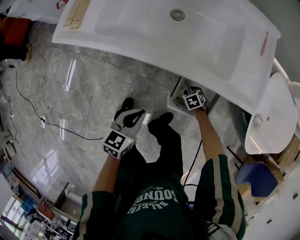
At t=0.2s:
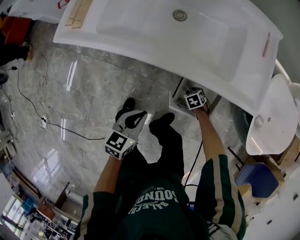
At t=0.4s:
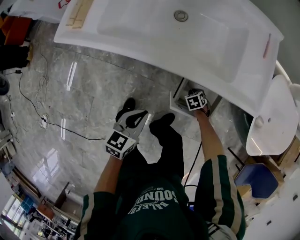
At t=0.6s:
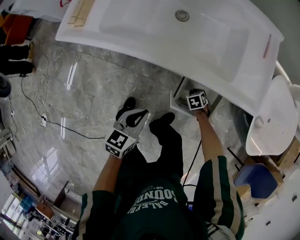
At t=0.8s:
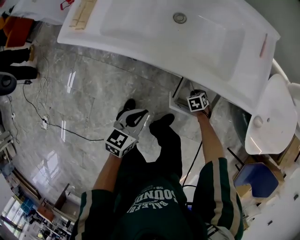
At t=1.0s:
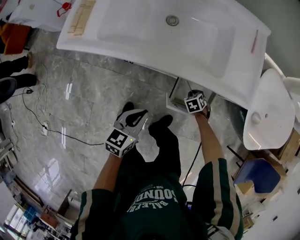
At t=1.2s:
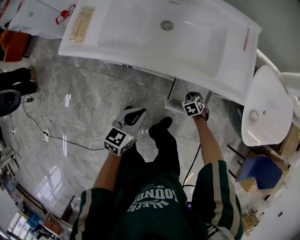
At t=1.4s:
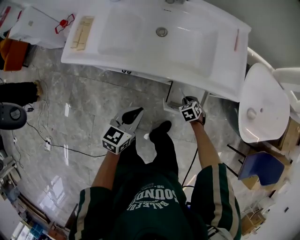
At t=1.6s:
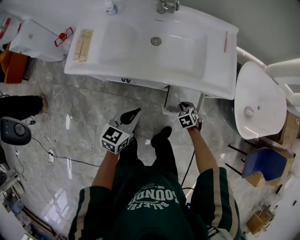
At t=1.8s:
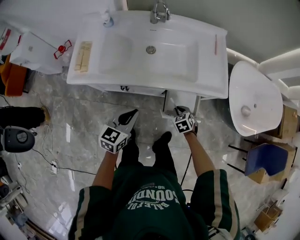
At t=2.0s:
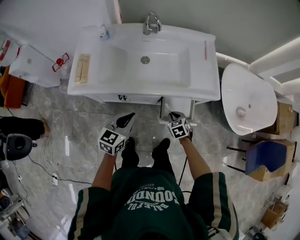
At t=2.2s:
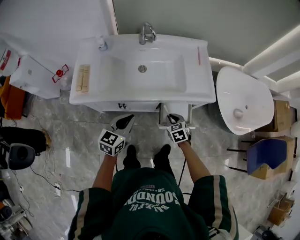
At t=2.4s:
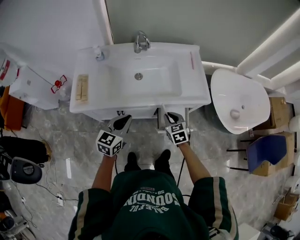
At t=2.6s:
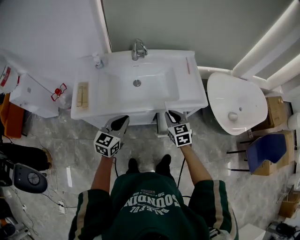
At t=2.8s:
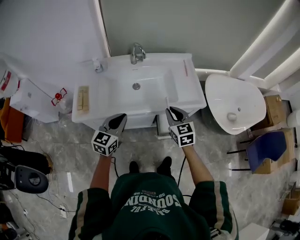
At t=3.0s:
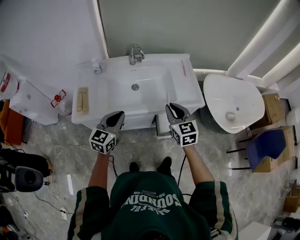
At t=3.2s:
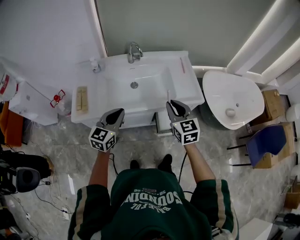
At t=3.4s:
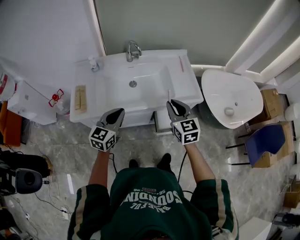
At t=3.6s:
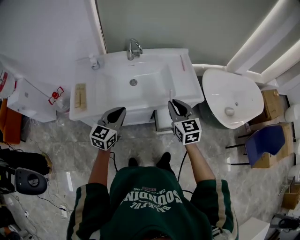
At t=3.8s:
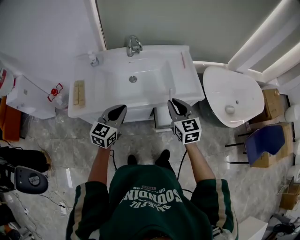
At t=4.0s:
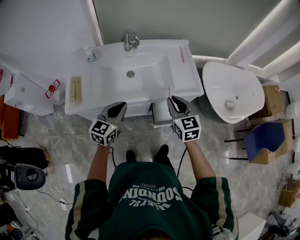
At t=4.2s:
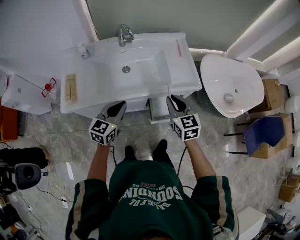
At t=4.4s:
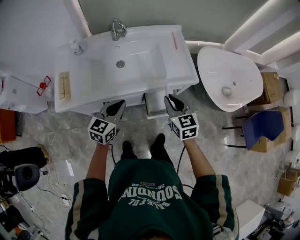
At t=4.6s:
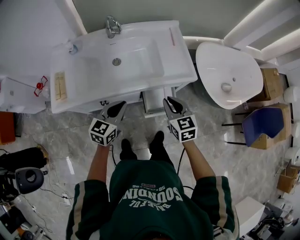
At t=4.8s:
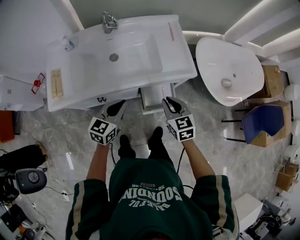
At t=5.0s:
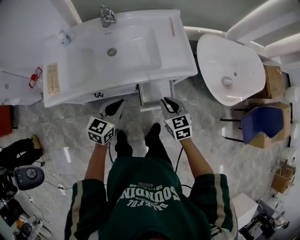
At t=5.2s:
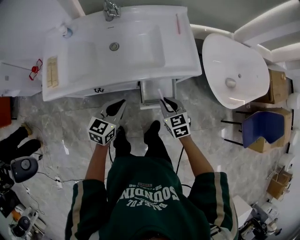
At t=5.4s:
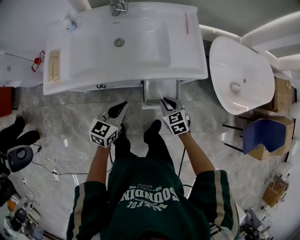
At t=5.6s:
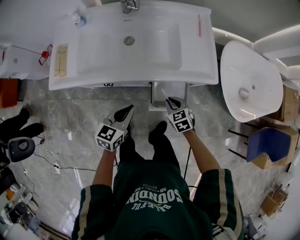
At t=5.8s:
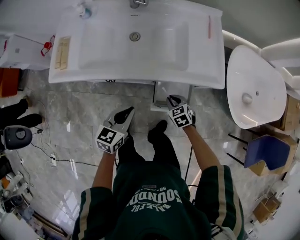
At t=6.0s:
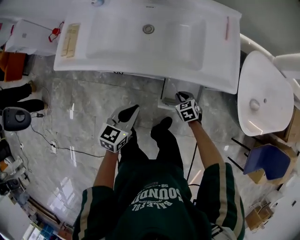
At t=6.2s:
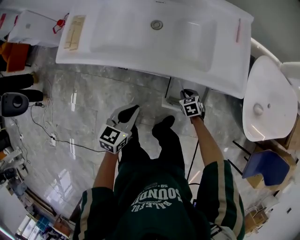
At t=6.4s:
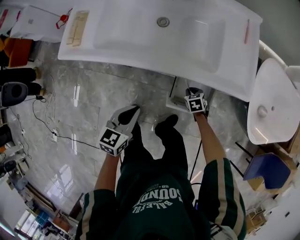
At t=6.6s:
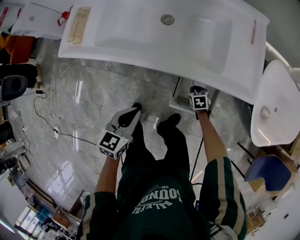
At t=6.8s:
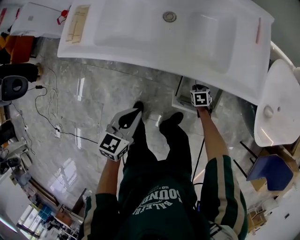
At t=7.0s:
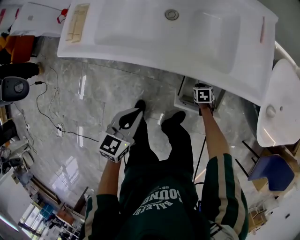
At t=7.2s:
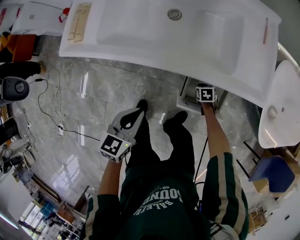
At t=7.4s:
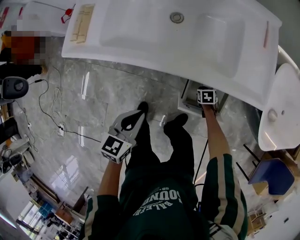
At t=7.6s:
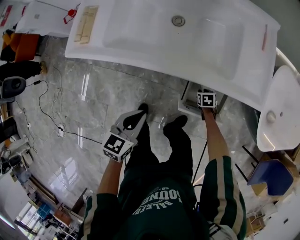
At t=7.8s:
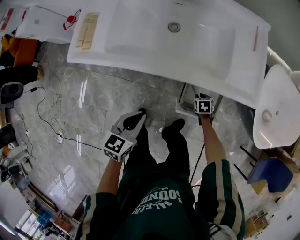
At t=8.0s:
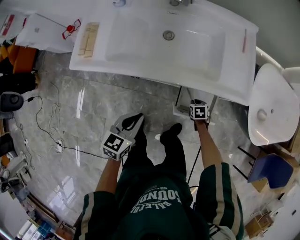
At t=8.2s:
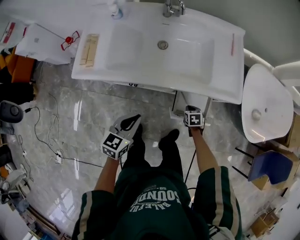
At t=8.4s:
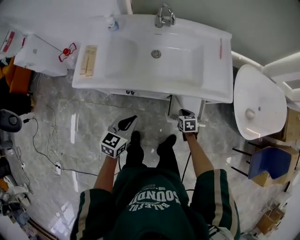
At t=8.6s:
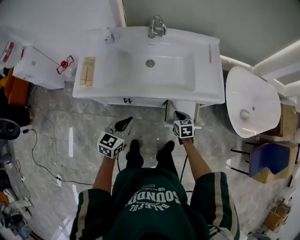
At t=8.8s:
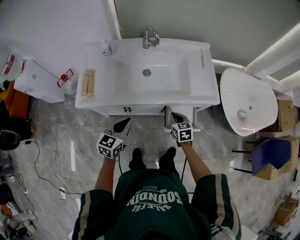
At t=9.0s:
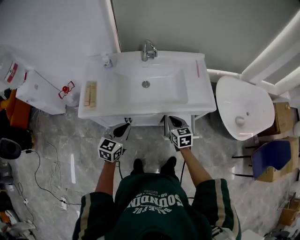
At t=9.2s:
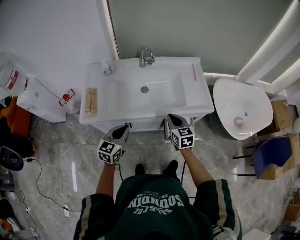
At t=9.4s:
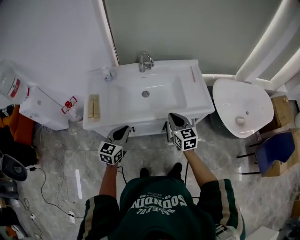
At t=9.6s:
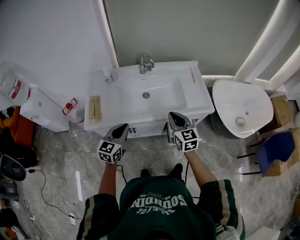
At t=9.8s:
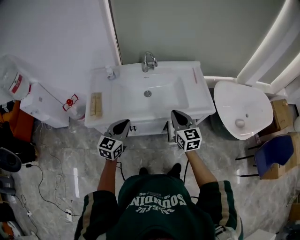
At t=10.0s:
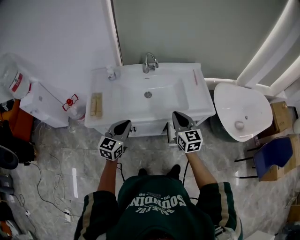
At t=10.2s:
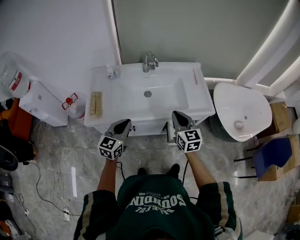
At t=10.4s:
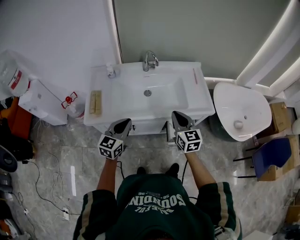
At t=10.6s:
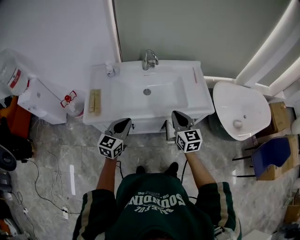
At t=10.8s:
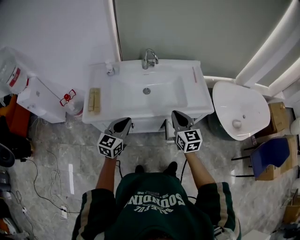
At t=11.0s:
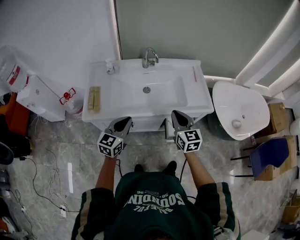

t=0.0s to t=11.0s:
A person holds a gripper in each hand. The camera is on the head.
t=0.0s to t=1.6s: The grippers both shift upward by approximately 15 cm.
t=1.6s to t=3.2s: The left gripper is displaced upward and to the left by approximately 20 cm, and turns by roughly 20 degrees, while the right gripper travels upward by approximately 40 cm, and angles its fingers upward, by about 50 degrees.
t=3.2s to t=4.8s: The right gripper travels downward and to the right by some 15 cm. The left gripper is displaced to the right and downward by about 15 cm.
t=4.8s to t=6.2s: The right gripper goes approximately 35 cm downward, and tips its fingers downward by roughly 30 degrees, while the left gripper travels downward and backward by approximately 15 cm, and rotates approximately 20 degrees.
t=6.2s to t=7.8s: The right gripper is displaced downward by some 5 cm.
t=7.8s to t=9.4s: The right gripper goes roughly 50 cm upward, and tips its fingers upward by some 50 degrees. The left gripper moves upward and to the left, roughly 20 cm, and turns by some 20 degrees.
t=9.4s to t=11.0s: The grippers make only small movements.

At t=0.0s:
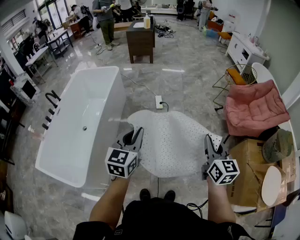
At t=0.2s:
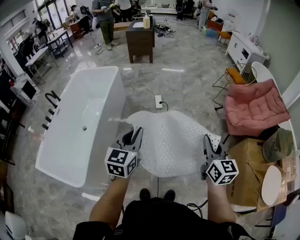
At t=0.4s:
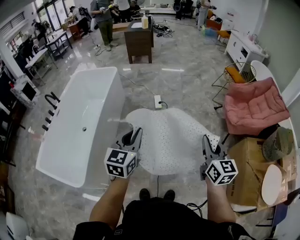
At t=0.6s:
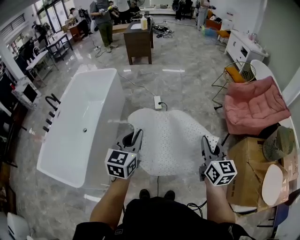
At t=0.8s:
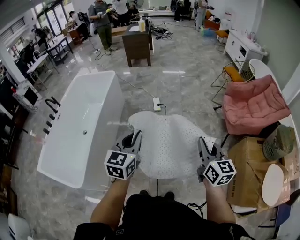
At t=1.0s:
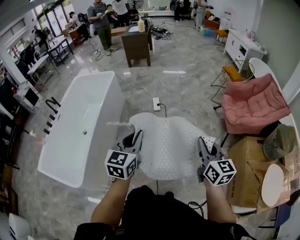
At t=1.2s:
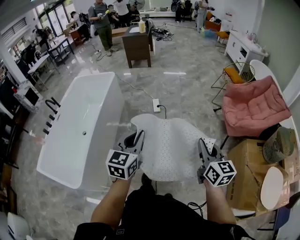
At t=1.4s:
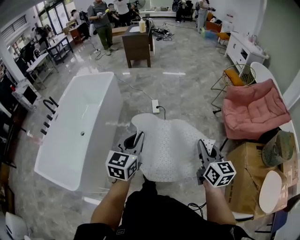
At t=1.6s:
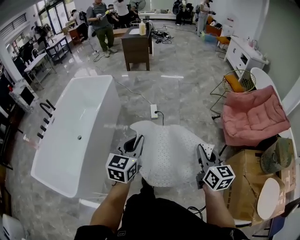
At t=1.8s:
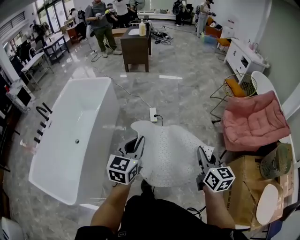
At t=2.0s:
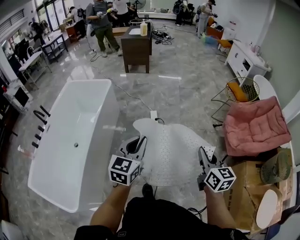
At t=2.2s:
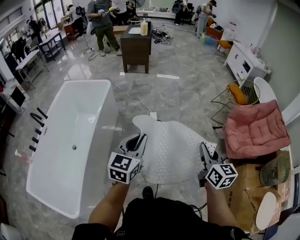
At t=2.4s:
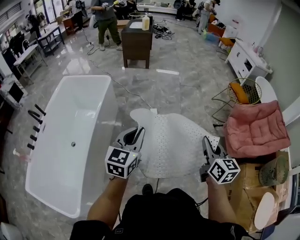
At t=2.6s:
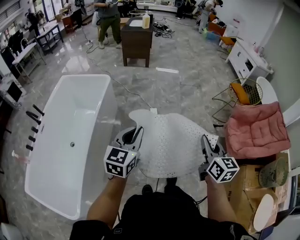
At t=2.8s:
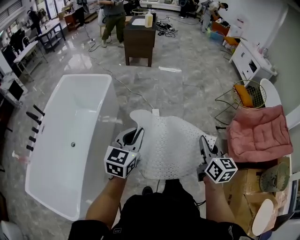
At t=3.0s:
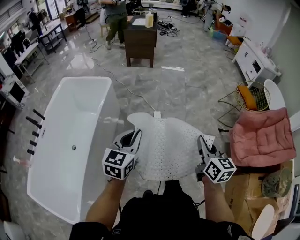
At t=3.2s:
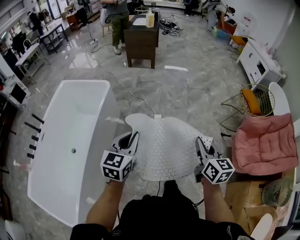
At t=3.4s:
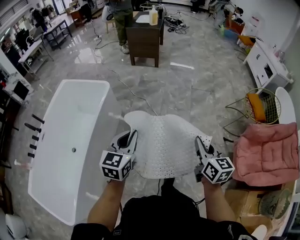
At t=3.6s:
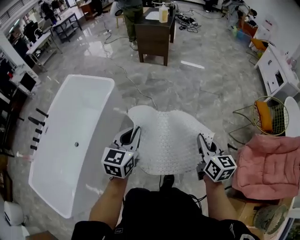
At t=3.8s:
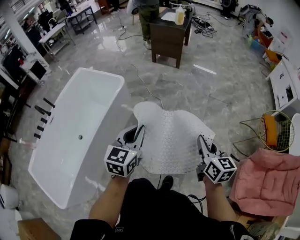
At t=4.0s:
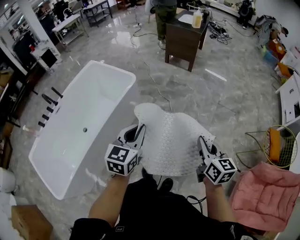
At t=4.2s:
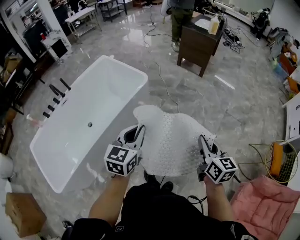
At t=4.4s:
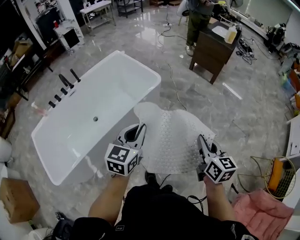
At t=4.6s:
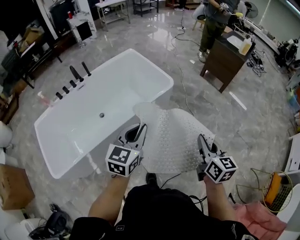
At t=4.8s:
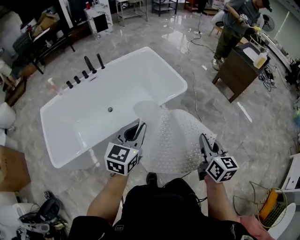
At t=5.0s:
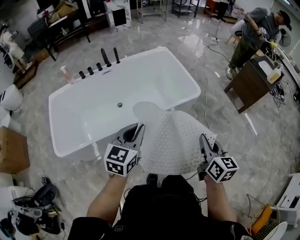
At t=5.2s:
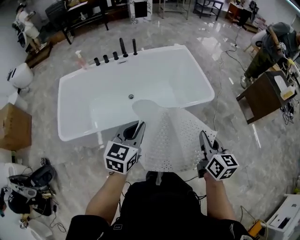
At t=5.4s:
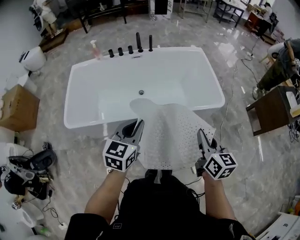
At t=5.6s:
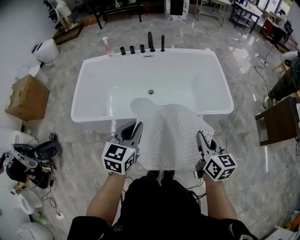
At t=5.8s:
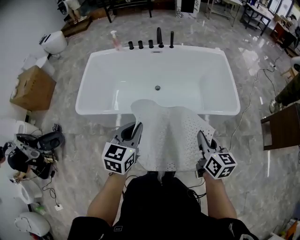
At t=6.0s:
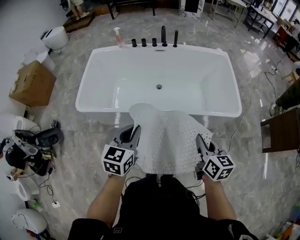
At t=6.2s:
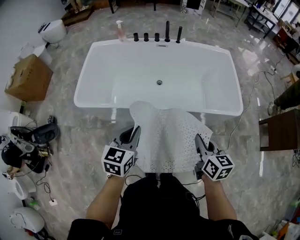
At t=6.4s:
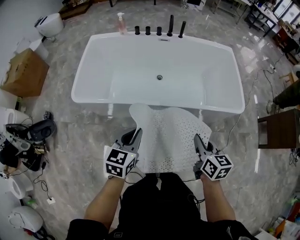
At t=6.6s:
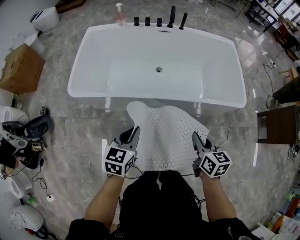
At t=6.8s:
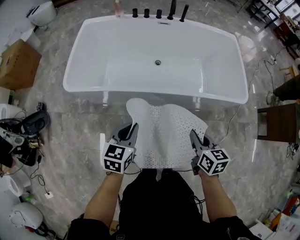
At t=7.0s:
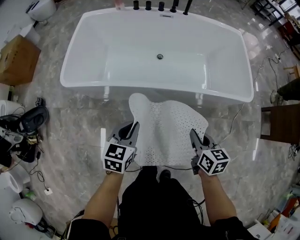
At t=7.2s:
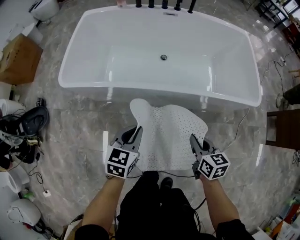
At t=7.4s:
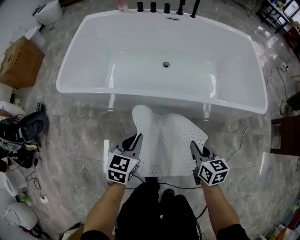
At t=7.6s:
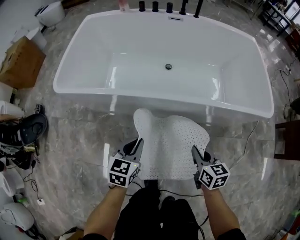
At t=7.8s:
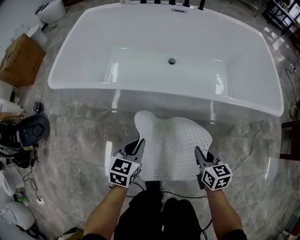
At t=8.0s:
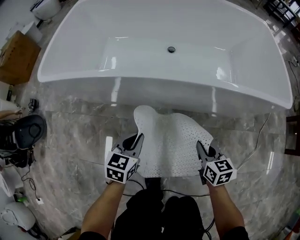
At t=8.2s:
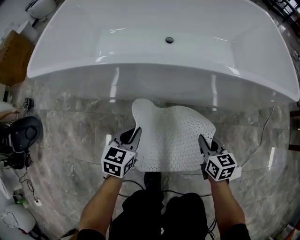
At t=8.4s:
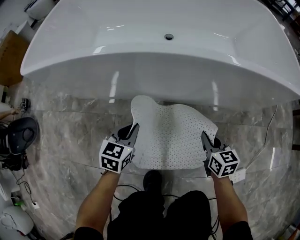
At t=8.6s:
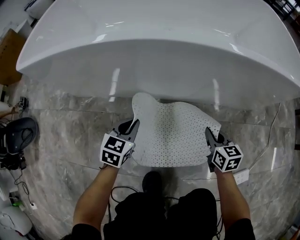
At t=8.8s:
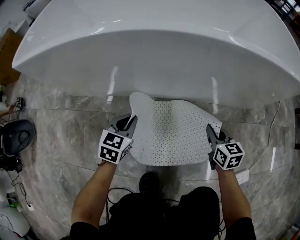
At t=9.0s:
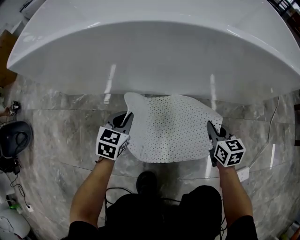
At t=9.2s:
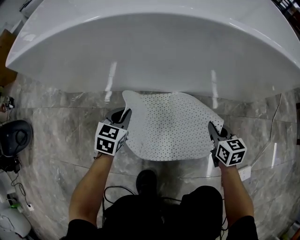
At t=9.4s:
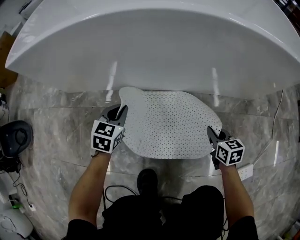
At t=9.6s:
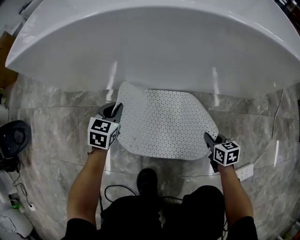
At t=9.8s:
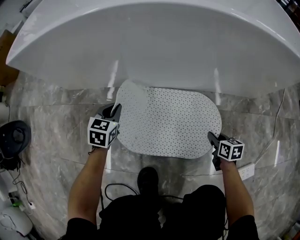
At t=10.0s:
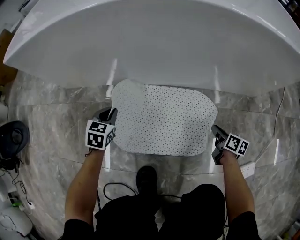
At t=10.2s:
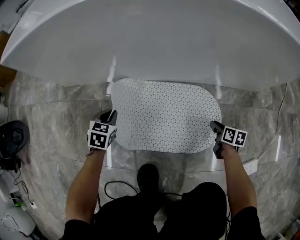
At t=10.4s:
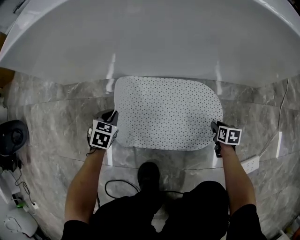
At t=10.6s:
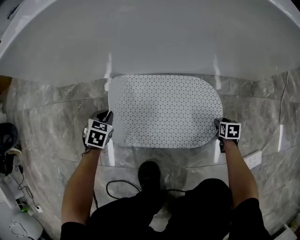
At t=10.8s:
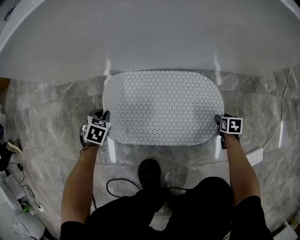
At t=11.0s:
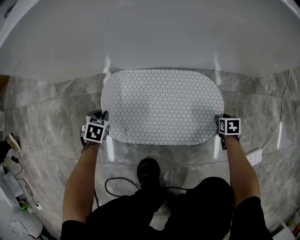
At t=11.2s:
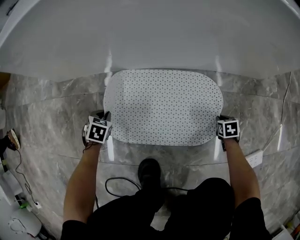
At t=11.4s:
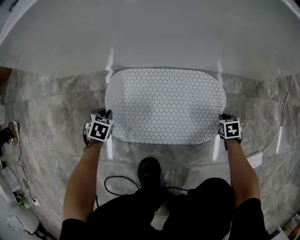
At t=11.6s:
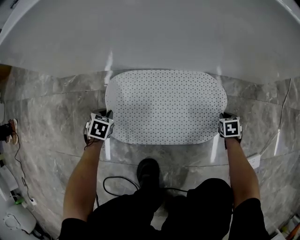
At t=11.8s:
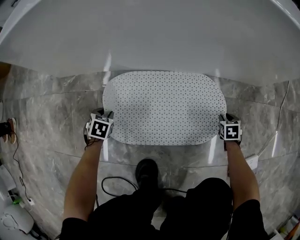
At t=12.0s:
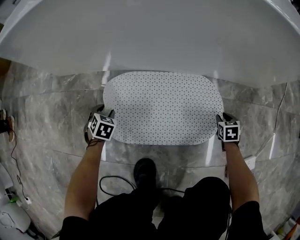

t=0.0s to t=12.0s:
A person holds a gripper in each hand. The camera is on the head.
t=0.0s to t=1.6s: The right gripper heads forward and to the right, covering approximately 10 cm, while the left gripper travels to the right and forward by about 10 cm.
t=1.6s to t=3.0s: The grippers both shift forward and to the left by approximately 35 cm.
t=3.0s to t=4.4s: The left gripper moves about 25 cm, and rotates about 30 degrees; the right gripper shifts by some 35 cm, and swivels approximately 40 degrees.
t=4.4s to t=6.0s: The right gripper ends up roughly 35 cm from where it was, and swivels some 50 degrees; the left gripper ends up some 30 cm from where it was, and rotates roughly 50 degrees.
t=6.0s to t=7.6s: The grippers both shift downward by approximately 40 cm.
t=7.6s to t=9.0s: The two grippers go approximately 35 cm downward.
t=9.0s to t=10.4s: The right gripper goes roughly 20 cm downward, turns by about 30 degrees, and opens up, while the left gripper heads downward and to the left, covering approximately 15 cm, and changes its angle by some 20 degrees.
t=10.4s to t=12.0s: The right gripper changes its angle by approximately 20 degrees, and closes and opens again, while the left gripper is displaced downward by some 5 cm, and opens up.
